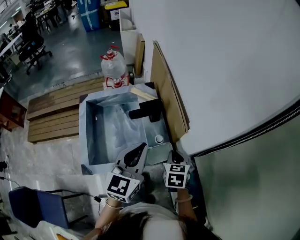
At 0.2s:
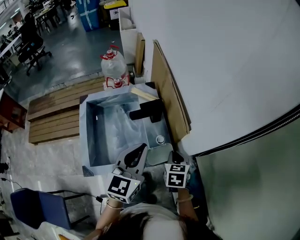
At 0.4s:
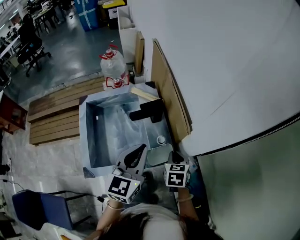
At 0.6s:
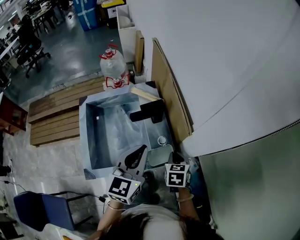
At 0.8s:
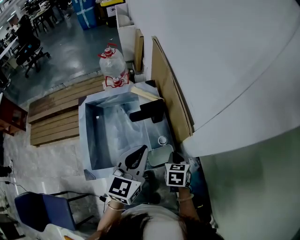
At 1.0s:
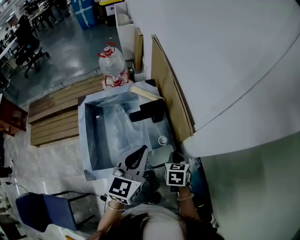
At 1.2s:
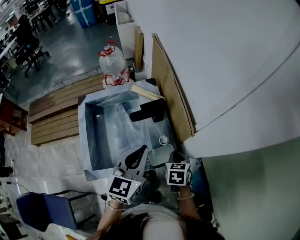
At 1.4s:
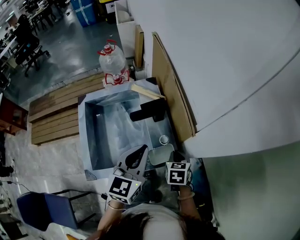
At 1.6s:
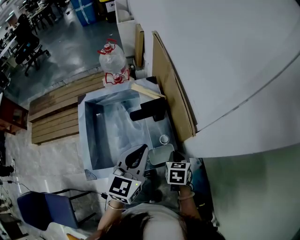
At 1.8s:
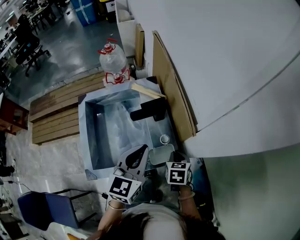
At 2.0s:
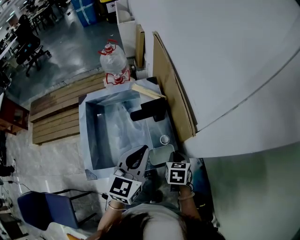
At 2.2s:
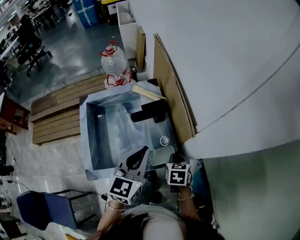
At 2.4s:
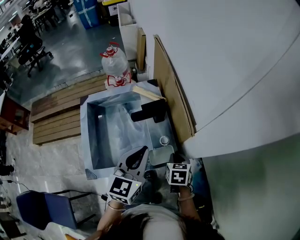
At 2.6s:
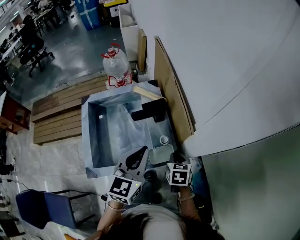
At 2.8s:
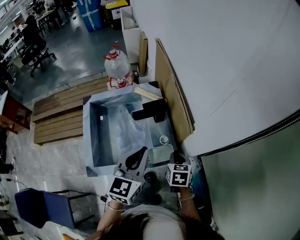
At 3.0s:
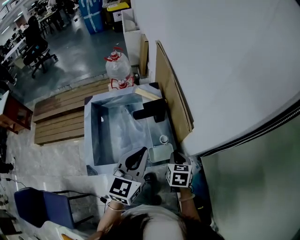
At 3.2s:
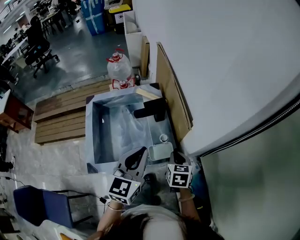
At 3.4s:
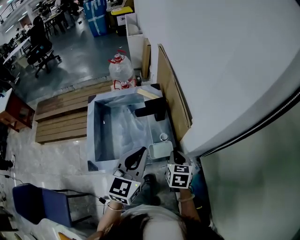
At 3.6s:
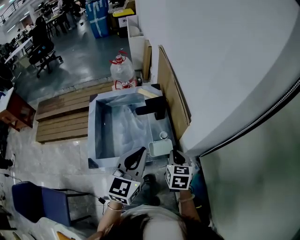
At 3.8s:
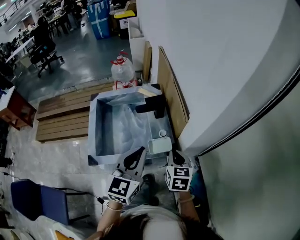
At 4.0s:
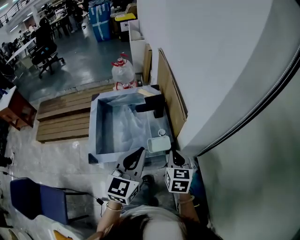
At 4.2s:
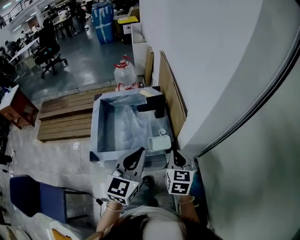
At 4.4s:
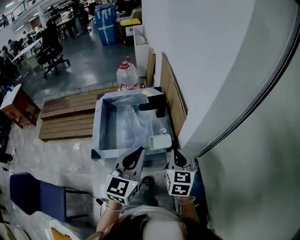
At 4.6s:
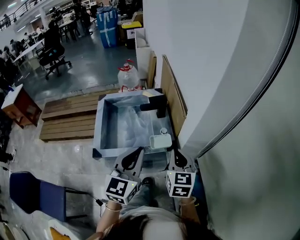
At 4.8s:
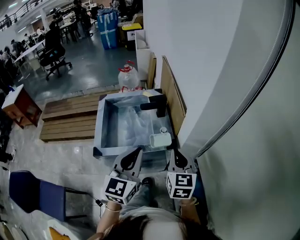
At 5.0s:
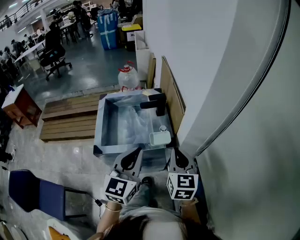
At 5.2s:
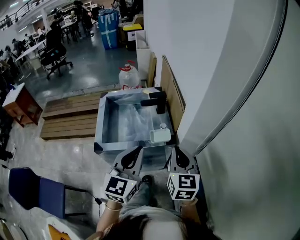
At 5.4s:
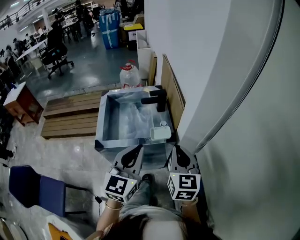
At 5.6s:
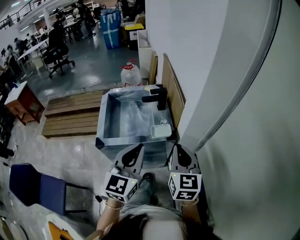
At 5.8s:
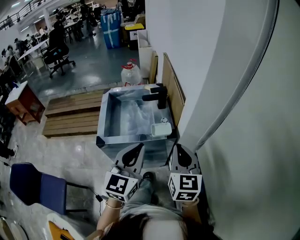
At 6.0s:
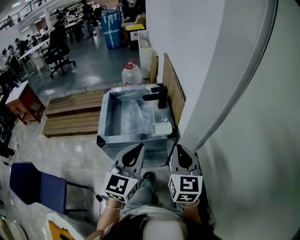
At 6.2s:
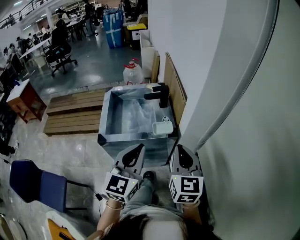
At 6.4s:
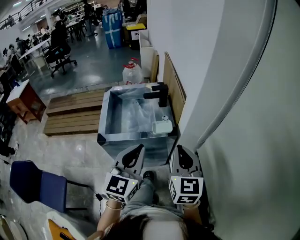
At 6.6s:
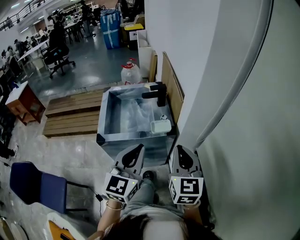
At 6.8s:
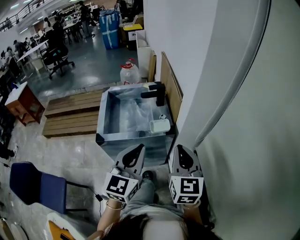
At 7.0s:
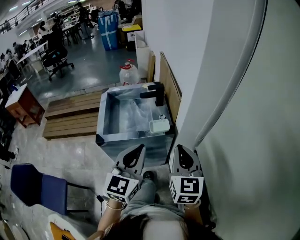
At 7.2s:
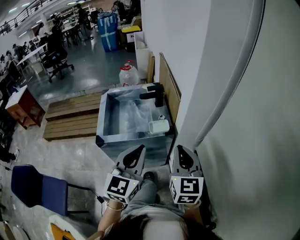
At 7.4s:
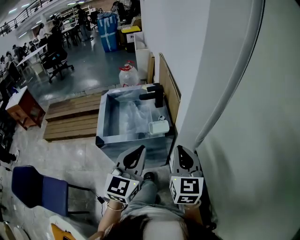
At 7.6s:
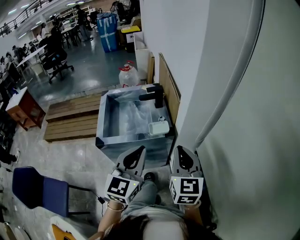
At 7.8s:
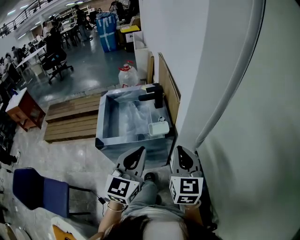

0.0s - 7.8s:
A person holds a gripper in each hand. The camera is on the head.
0.0s - 1.6s: The left gripper ends up some 5 cm from where it was. The right gripper heads downward, covering some 5 cm.
1.6s - 3.2s: The right gripper shifts by about 5 cm. The left gripper moves backward, some 5 cm.
3.2s - 4.6s: The left gripper heads backward and upward, covering roughly 15 cm; the right gripper shifts roughly 20 cm upward and backward, and rotates approximately 30 degrees.
4.6s - 6.2s: The right gripper heads backward and upward, covering about 15 cm, while the left gripper goes some 10 cm backward.
6.2s - 7.8s: The grippers move only a little.

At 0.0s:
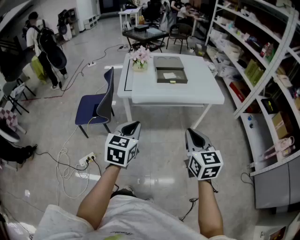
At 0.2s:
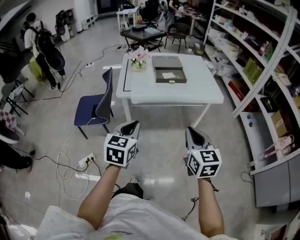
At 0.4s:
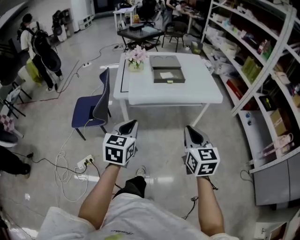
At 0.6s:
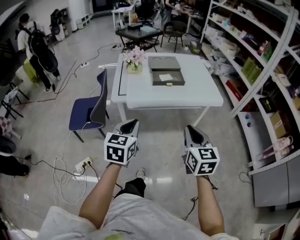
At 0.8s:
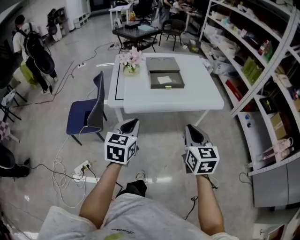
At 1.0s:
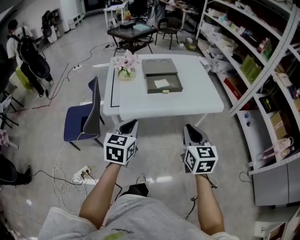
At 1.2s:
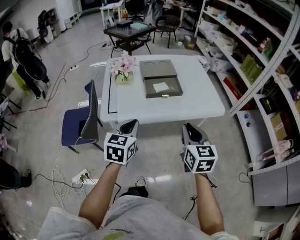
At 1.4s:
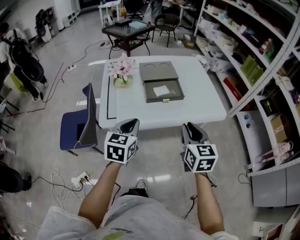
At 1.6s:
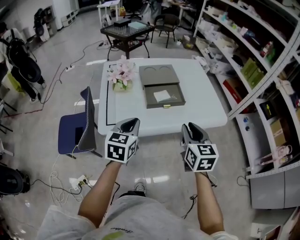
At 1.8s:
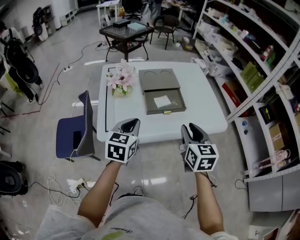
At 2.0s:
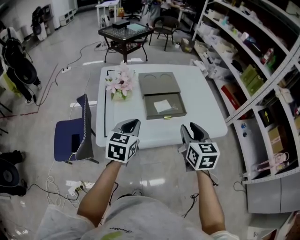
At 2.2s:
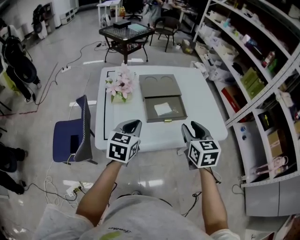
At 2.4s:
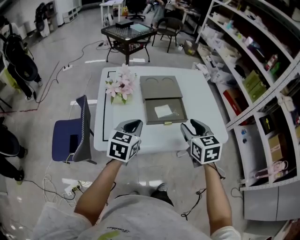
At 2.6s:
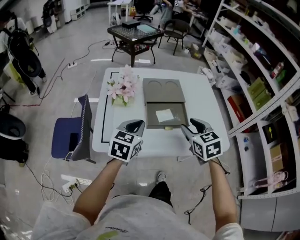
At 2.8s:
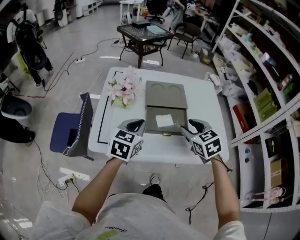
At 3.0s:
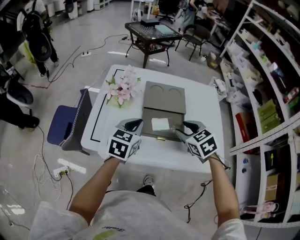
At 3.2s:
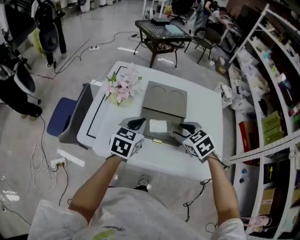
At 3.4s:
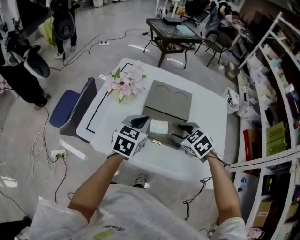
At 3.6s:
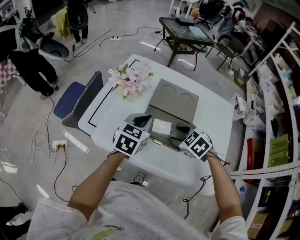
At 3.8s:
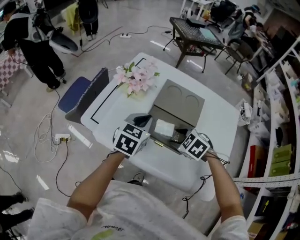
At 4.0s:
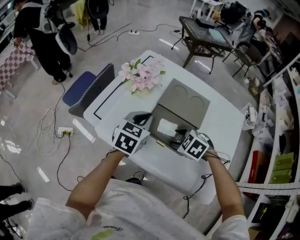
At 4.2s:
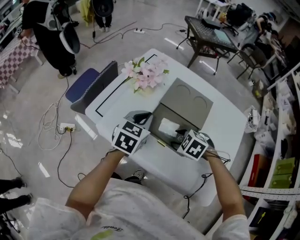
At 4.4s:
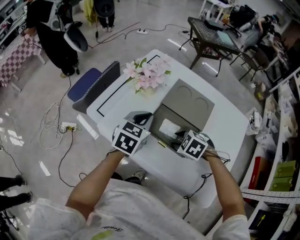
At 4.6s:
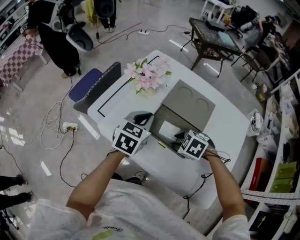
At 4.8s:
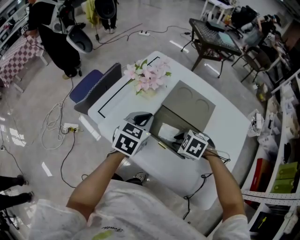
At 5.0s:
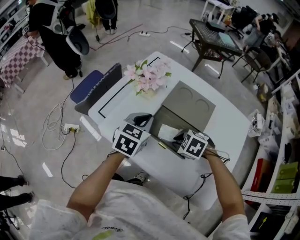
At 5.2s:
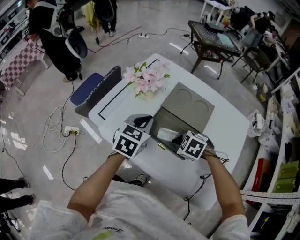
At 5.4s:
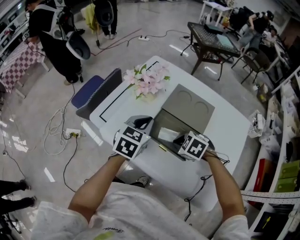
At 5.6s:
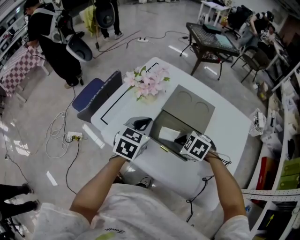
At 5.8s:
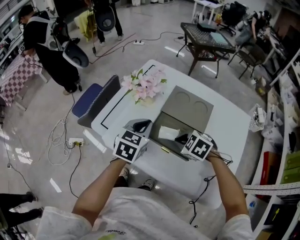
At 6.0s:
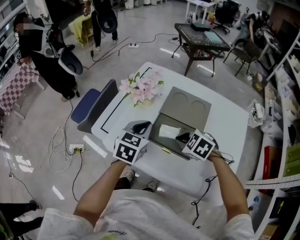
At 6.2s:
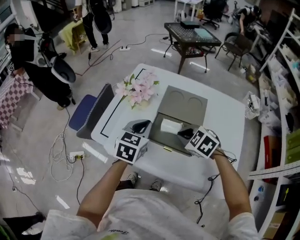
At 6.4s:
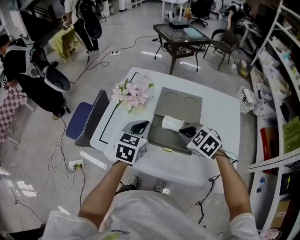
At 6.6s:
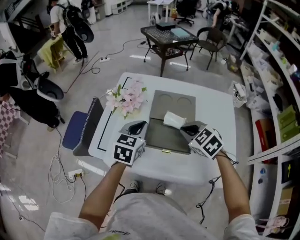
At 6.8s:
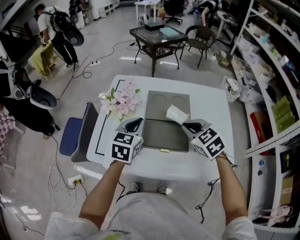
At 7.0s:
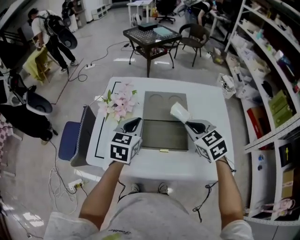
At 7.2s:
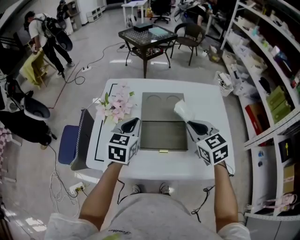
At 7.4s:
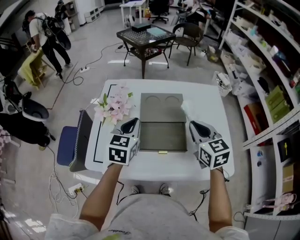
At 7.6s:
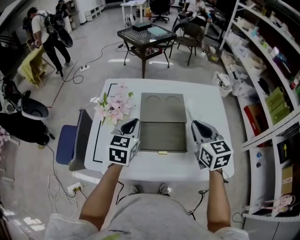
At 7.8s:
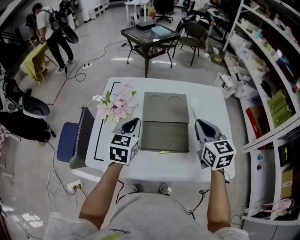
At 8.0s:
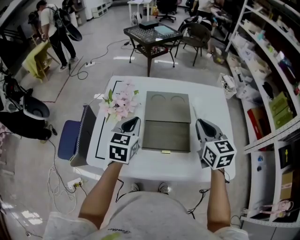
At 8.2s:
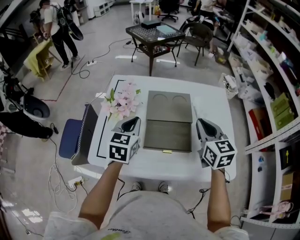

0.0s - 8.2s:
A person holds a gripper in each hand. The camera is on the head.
0.0s - 1.6s: Both grippers travel together forward, roughly 30 cm.
1.6s - 3.2s: The left gripper shifts by roughly 20 cm, while the right gripper moves roughly 25 cm, turns by about 60 degrees, and opens up.
3.2s - 5.0s: The right gripper goes roughly 10 cm downward, rotates roughly 50 degrees, and closes. The left gripper turns by approximately 20 degrees.
5.0s - 6.6s: The right gripper travels upward by about 15 cm, and turns by roughly 40 degrees.
6.6s - 8.2s: The right gripper goes roughly 10 cm upward and to the right, and turns by roughly 50 degrees.

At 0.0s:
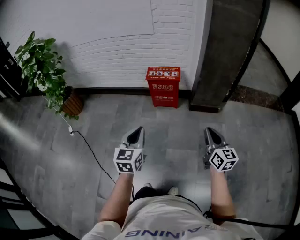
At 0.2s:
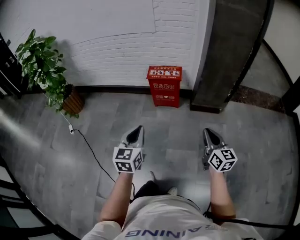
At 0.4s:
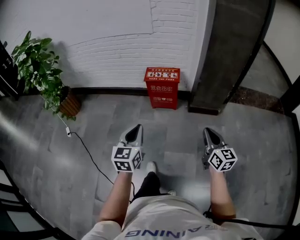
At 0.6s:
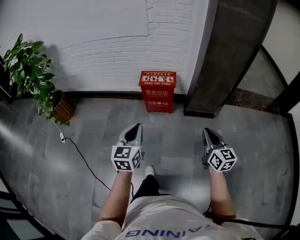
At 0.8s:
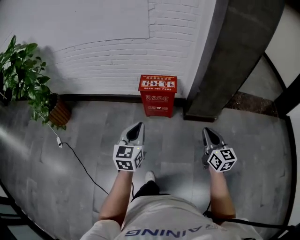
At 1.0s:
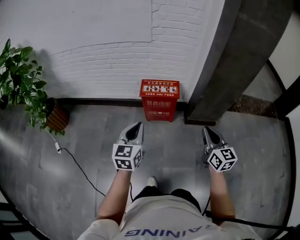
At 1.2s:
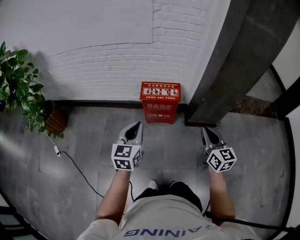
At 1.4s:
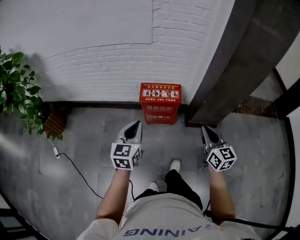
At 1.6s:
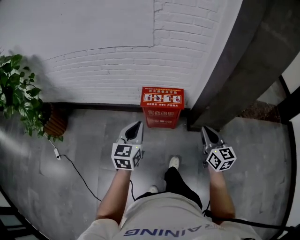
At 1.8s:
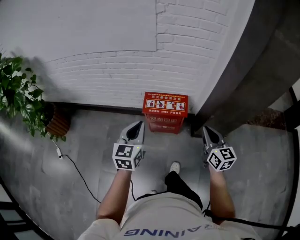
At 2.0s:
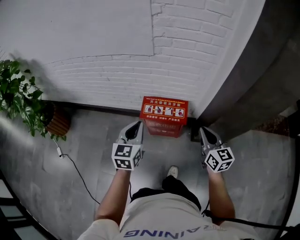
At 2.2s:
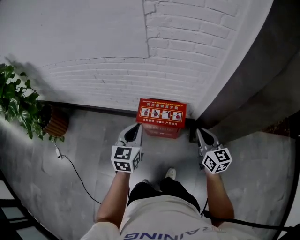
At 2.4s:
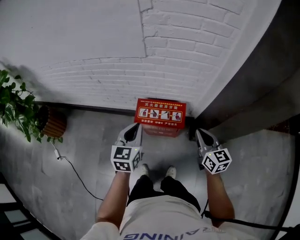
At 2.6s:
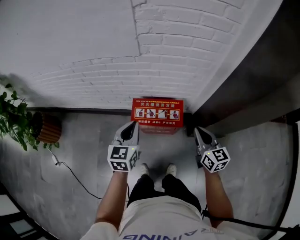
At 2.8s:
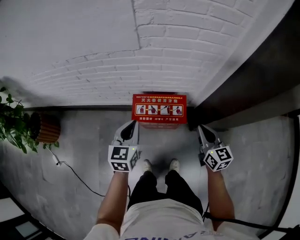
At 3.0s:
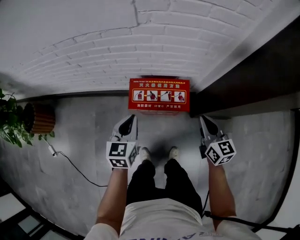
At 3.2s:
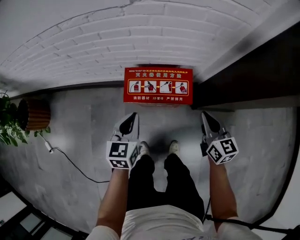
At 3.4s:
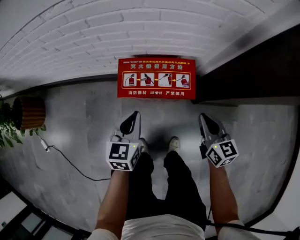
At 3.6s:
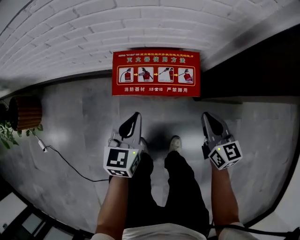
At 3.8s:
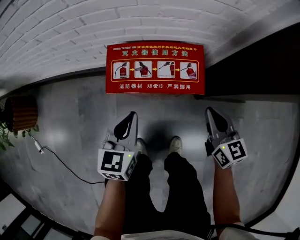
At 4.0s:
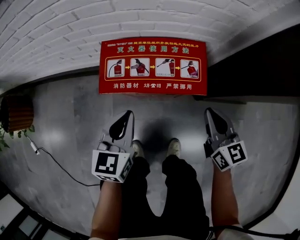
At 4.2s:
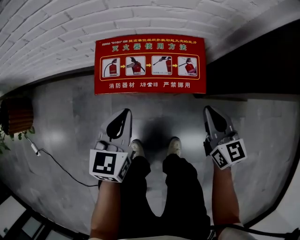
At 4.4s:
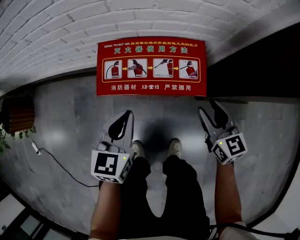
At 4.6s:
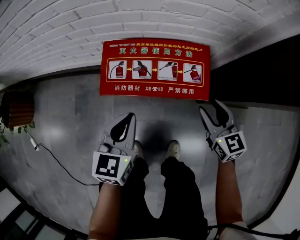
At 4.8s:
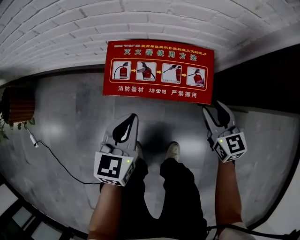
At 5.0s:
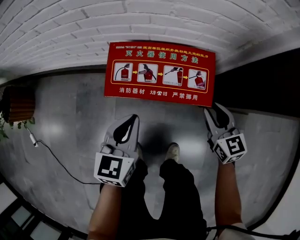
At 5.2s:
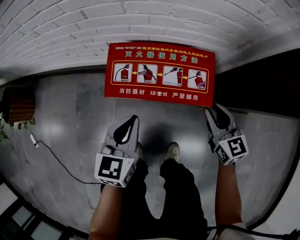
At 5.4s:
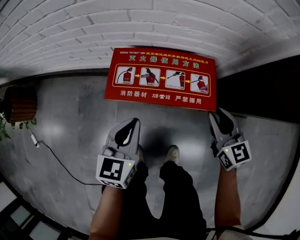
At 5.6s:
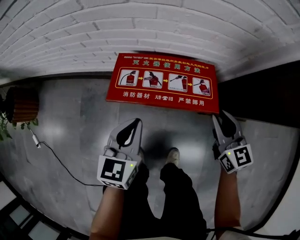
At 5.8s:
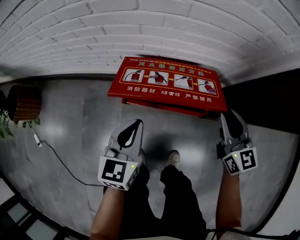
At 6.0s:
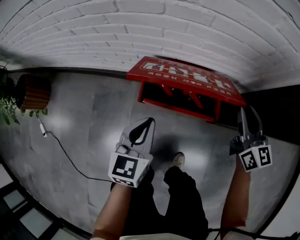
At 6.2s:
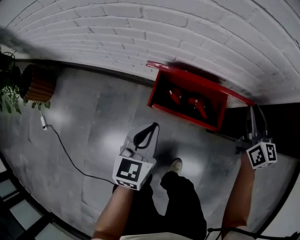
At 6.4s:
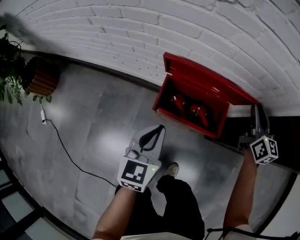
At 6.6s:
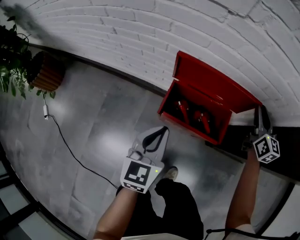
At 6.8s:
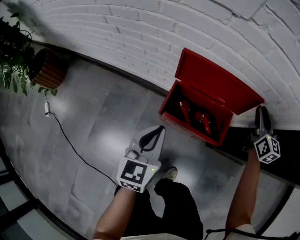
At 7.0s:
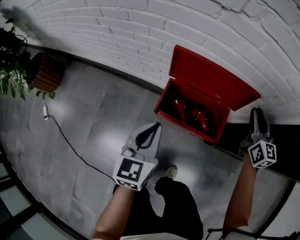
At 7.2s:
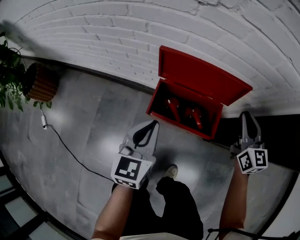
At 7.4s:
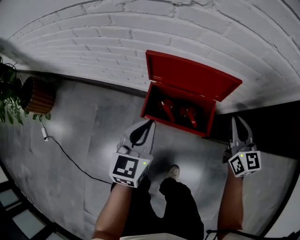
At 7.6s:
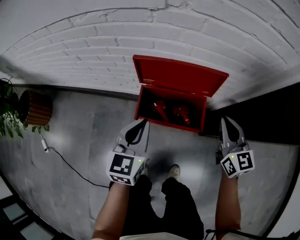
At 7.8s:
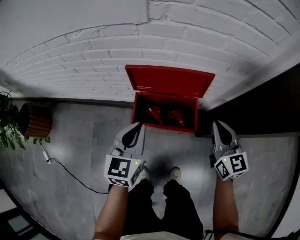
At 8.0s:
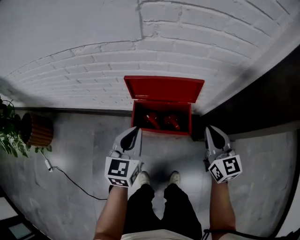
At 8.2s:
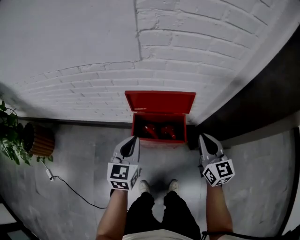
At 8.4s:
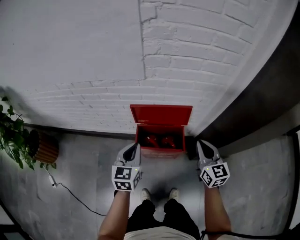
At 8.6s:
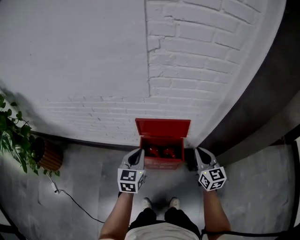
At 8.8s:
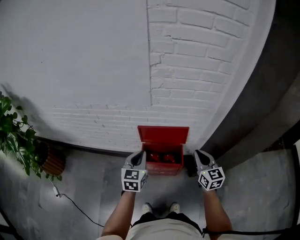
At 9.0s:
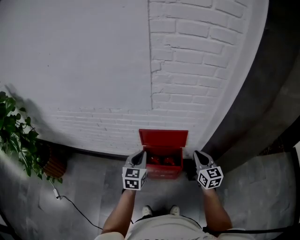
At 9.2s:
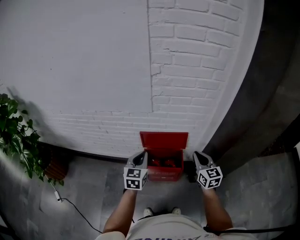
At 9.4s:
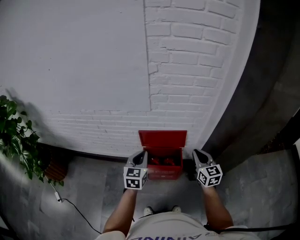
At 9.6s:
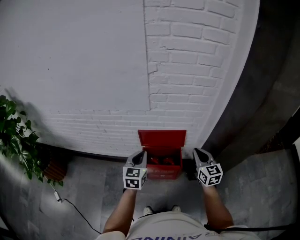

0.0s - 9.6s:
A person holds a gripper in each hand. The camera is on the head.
0.0s - 1.6s: The pair of grippers is taken forward, some 40 cm.
1.6s - 3.2s: The two grippers go roughly 35 cm forward and downward.
3.2s - 4.8s: The two grippers go about 15 cm downward. The right gripper opens.
4.8s - 6.4s: The right gripper travels upward and forward by some 25 cm. Meanwhile the left gripper goes roughly 10 cm upward.
6.4s - 8.0s: The left gripper travels upward by about 10 cm. Meanwhile the right gripper is displaced backward and upward by about 15 cm, and closes up.
8.0s - 9.6s: Both grippers move upward, roughly 15 cm.
